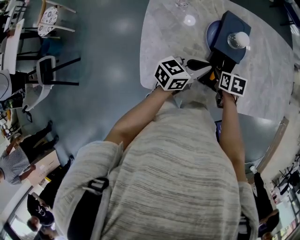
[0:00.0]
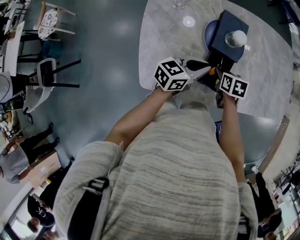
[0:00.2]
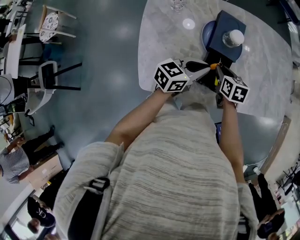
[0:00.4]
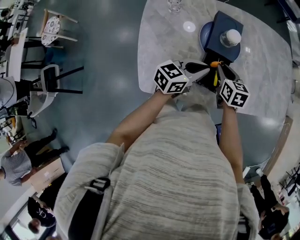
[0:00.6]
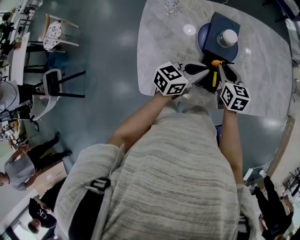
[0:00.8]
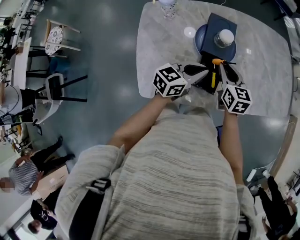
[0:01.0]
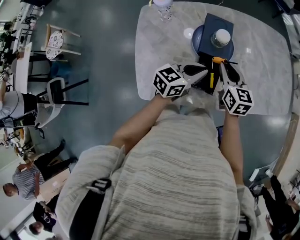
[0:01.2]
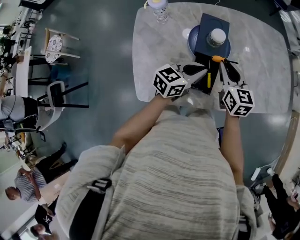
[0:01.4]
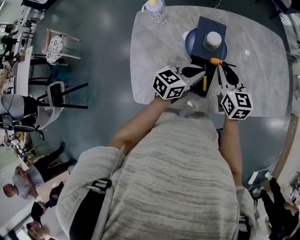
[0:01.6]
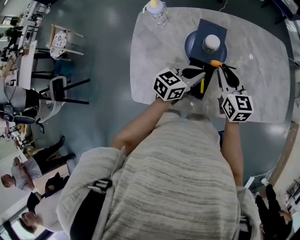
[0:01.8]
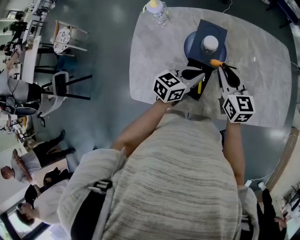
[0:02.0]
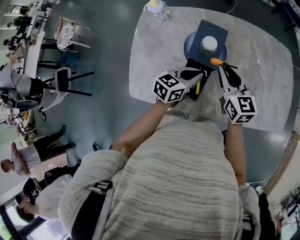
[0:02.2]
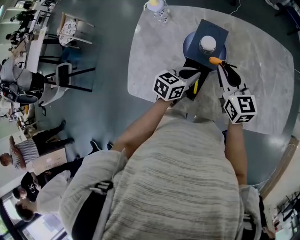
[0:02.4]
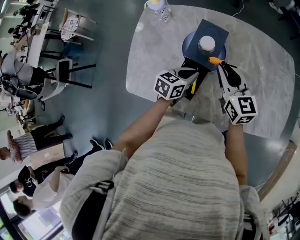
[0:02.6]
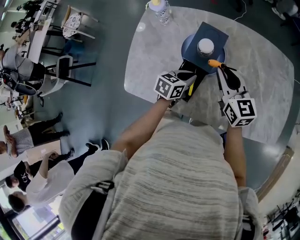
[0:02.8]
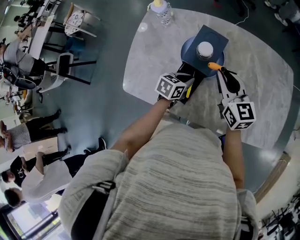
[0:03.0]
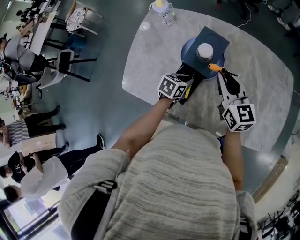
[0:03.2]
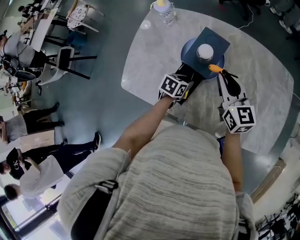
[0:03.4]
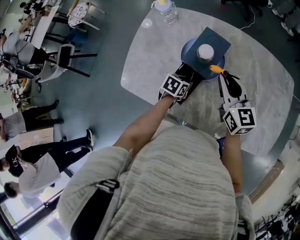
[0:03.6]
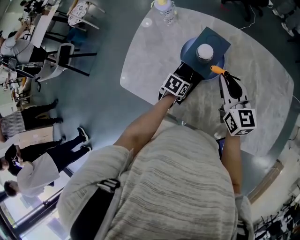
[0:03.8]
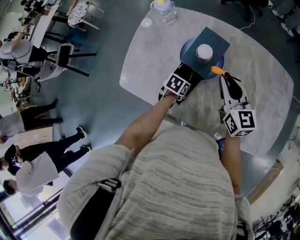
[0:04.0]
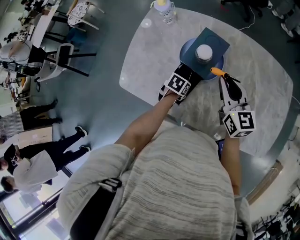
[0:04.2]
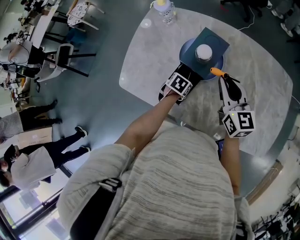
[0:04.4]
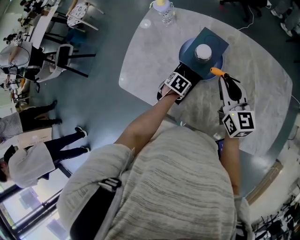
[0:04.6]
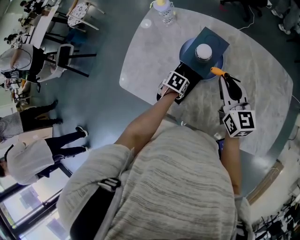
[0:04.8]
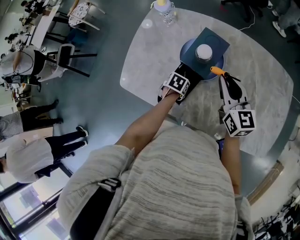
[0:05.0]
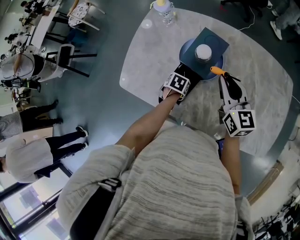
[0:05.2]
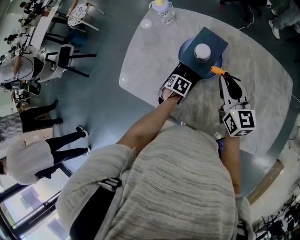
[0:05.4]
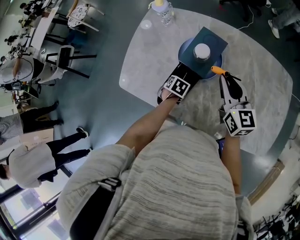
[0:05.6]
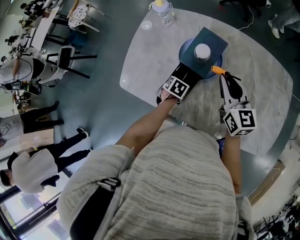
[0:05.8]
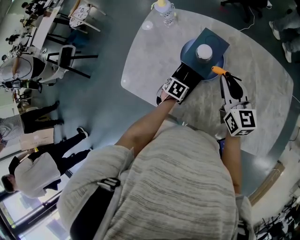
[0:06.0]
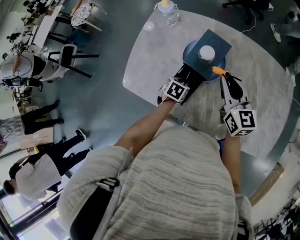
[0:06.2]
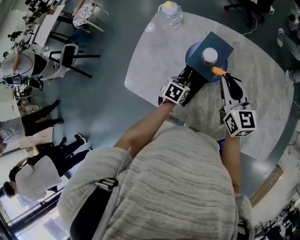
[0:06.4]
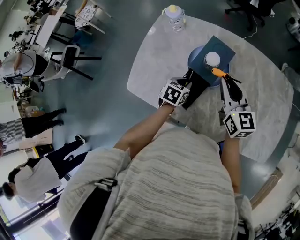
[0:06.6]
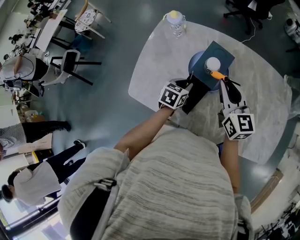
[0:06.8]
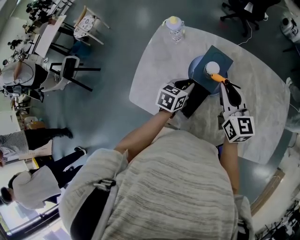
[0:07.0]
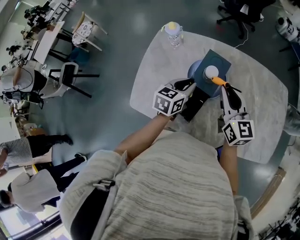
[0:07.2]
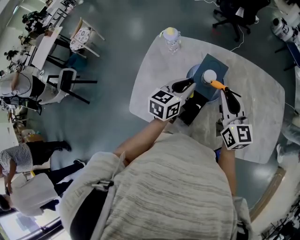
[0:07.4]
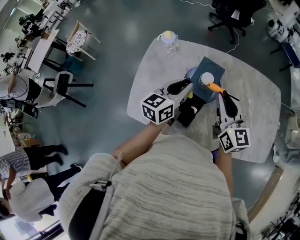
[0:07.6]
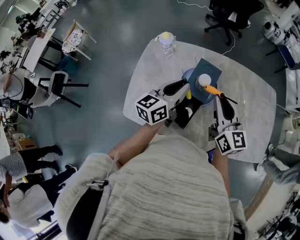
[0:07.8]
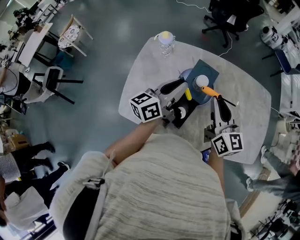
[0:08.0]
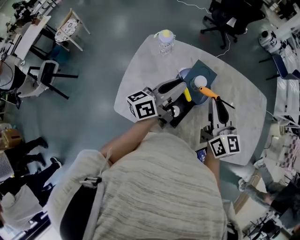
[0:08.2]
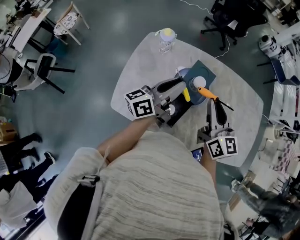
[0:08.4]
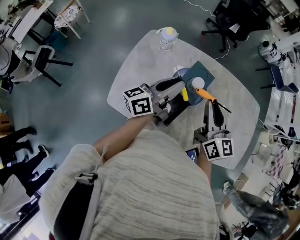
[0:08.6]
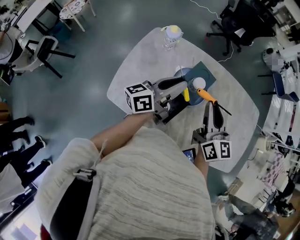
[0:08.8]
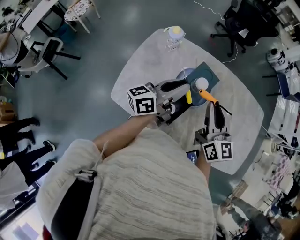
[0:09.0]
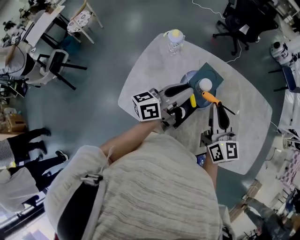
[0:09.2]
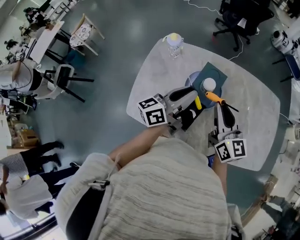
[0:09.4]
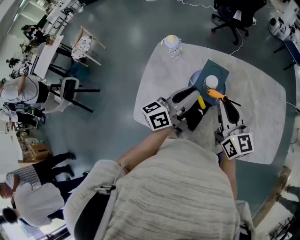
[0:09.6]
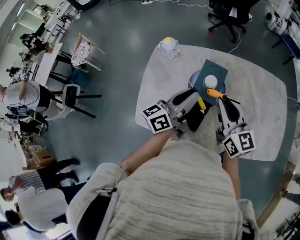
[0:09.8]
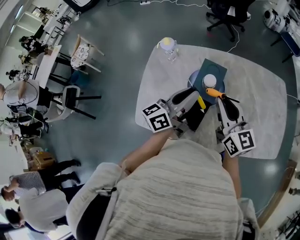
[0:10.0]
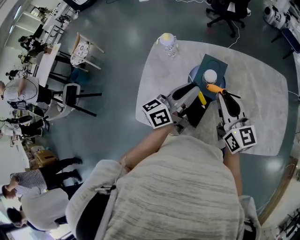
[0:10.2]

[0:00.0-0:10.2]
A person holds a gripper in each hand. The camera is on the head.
0:00.0 to 0:01.4: The left gripper moves to the right, about 5 cm; the right gripper moves upward, roughly 15 cm, and tips its fingers upward by about 40 degrees.
0:01.4 to 0:03.0: The right gripper heads to the right and forward, covering roughly 10 cm, and rotates approximately 30 degrees. The left gripper is displaced downward and to the right by about 10 cm, and swivels roughly 40 degrees.
0:03.0 to 0:04.4: The left gripper moves downward, approximately 10 cm, rotates roughly 30 degrees, and opens up.
0:04.4 to 0:05.8: The grippers move only a little.
0:05.8 to 0:07.2: The right gripper is displaced upward and to the left by about 10 cm, while the left gripper moves upward, about 25 cm, and tips its fingers upward by approximately 40 degrees.
0:07.2 to 0:08.8: The left gripper goes approximately 10 cm upward, and tips its fingers upward by roughly 40 degrees; the right gripper ends up about 5 cm from where it was.
0:08.8 to 0:10.2: There are only small adjustments of the grippers.
